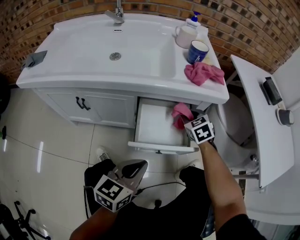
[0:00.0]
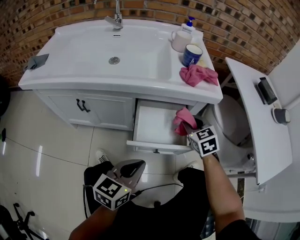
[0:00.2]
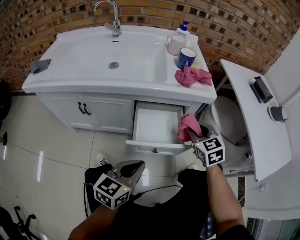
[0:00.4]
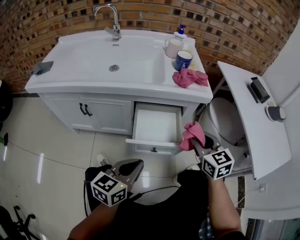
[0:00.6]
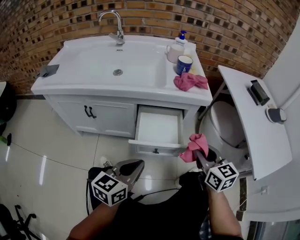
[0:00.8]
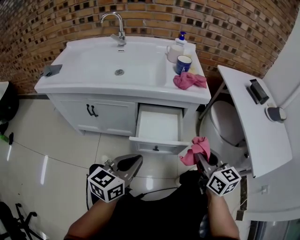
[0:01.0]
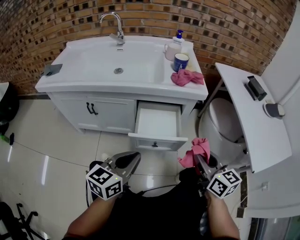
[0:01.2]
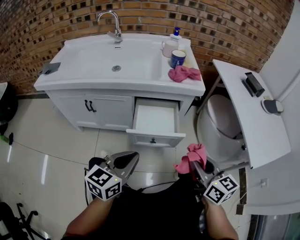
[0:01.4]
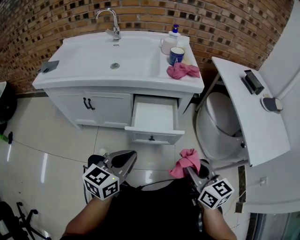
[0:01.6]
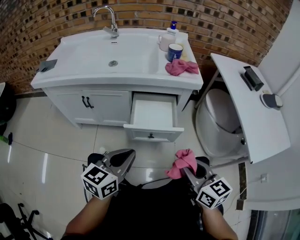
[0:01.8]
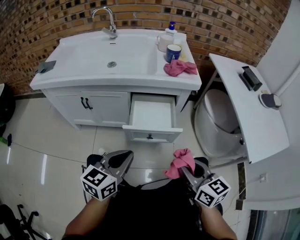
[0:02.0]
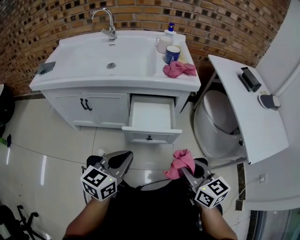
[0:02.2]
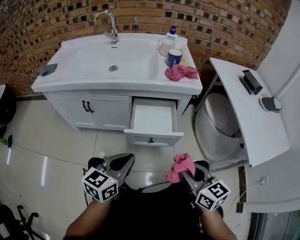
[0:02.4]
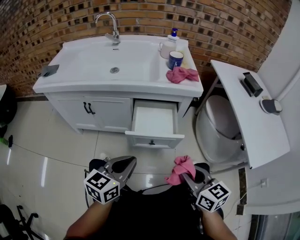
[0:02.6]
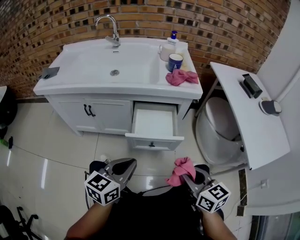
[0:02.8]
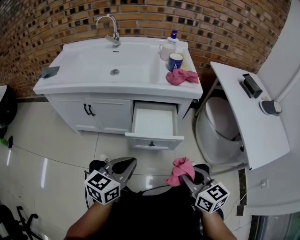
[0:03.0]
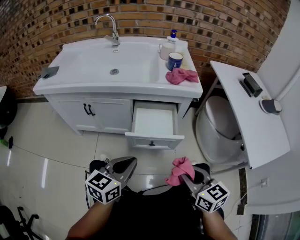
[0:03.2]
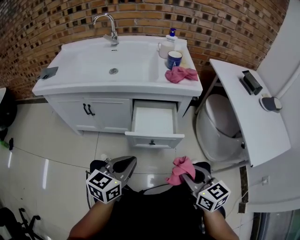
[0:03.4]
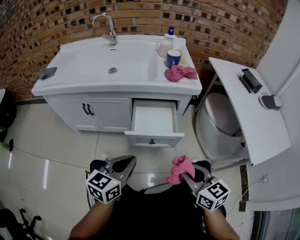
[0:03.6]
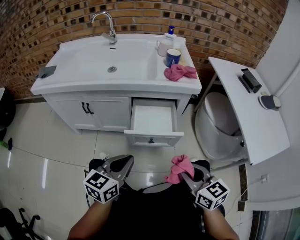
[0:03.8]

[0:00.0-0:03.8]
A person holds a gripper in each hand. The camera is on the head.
0:00.0 to 0:01.2: The right gripper is displaced backward and upward by roughly 30 cm, and points its fingers roughly 30 degrees further upward; the left gripper travels upward and backward by approximately 10 cm.
0:01.2 to 0:02.6: The right gripper heads backward, covering about 10 cm.
0:02.6 to 0:03.8: The two grippers keep their place.

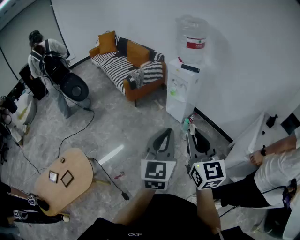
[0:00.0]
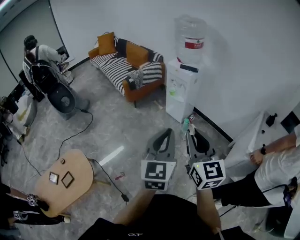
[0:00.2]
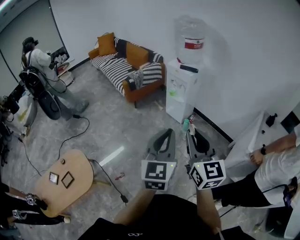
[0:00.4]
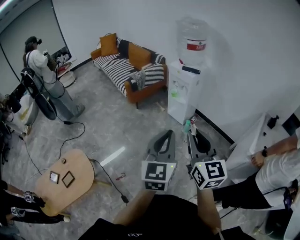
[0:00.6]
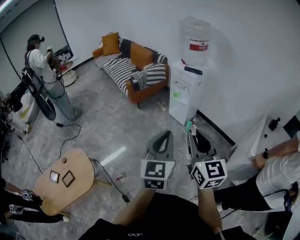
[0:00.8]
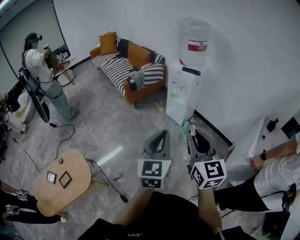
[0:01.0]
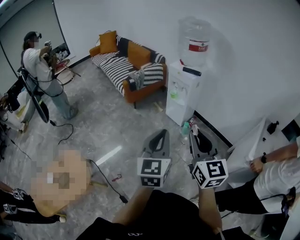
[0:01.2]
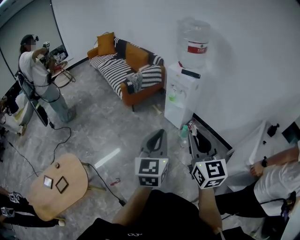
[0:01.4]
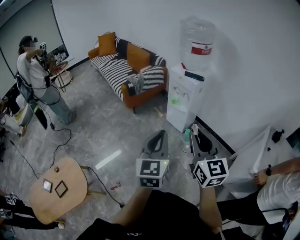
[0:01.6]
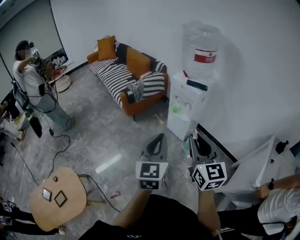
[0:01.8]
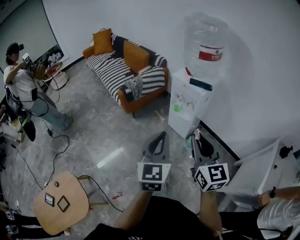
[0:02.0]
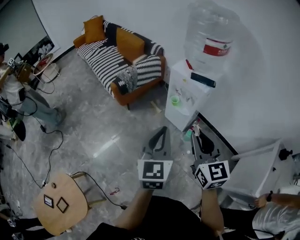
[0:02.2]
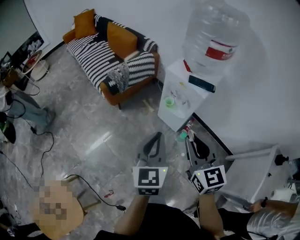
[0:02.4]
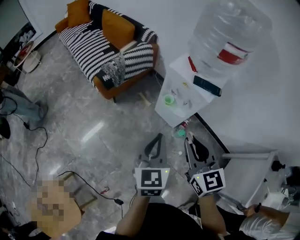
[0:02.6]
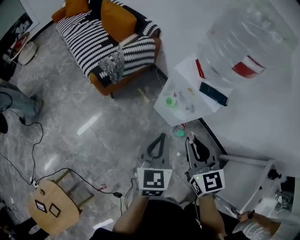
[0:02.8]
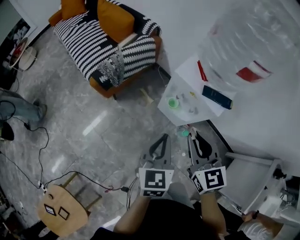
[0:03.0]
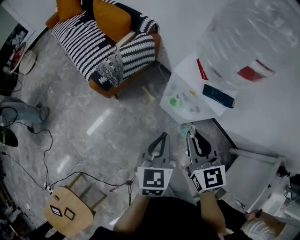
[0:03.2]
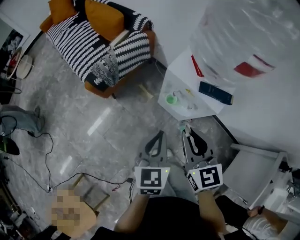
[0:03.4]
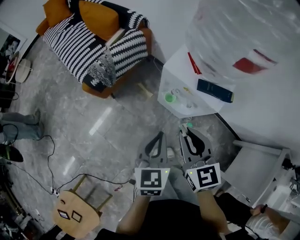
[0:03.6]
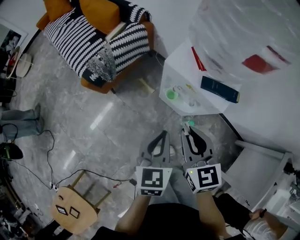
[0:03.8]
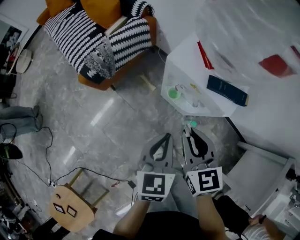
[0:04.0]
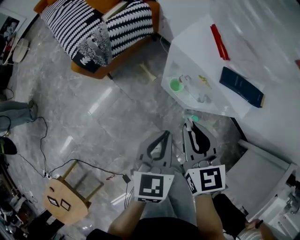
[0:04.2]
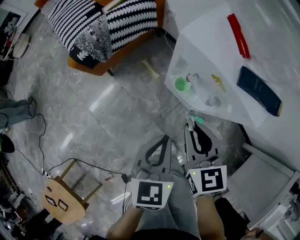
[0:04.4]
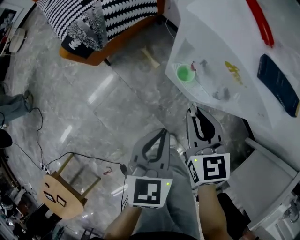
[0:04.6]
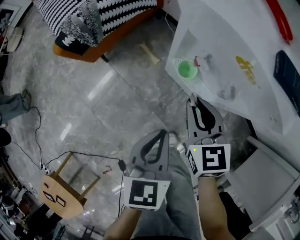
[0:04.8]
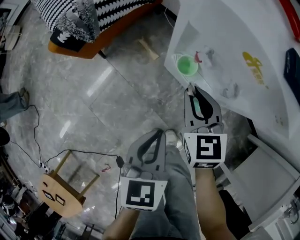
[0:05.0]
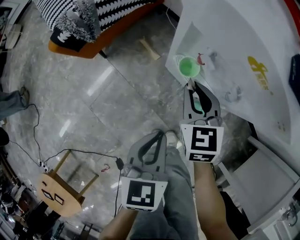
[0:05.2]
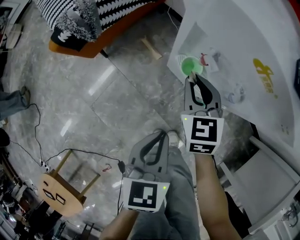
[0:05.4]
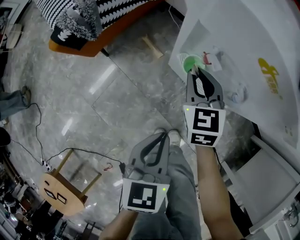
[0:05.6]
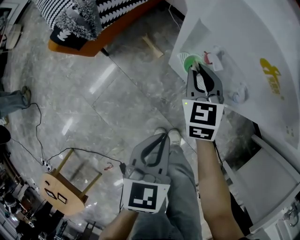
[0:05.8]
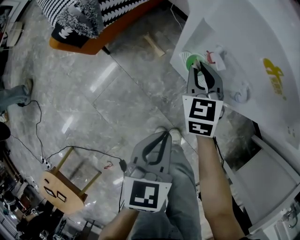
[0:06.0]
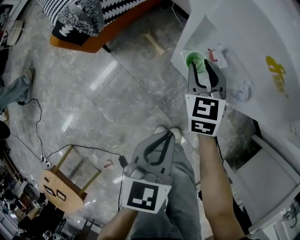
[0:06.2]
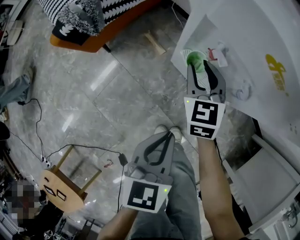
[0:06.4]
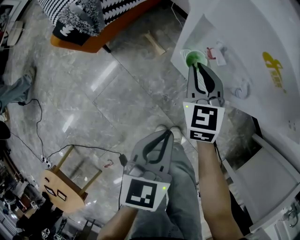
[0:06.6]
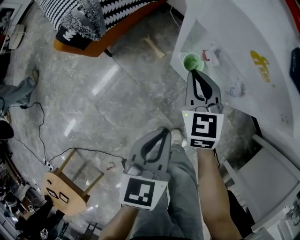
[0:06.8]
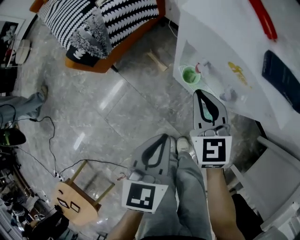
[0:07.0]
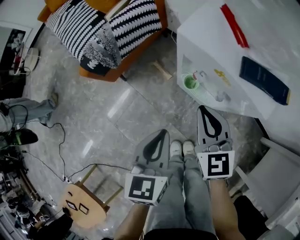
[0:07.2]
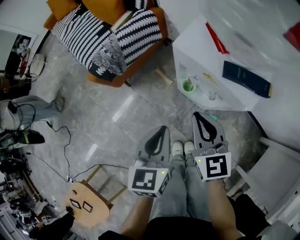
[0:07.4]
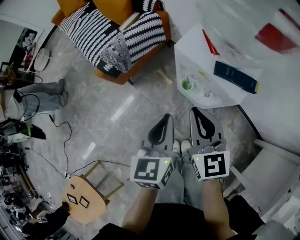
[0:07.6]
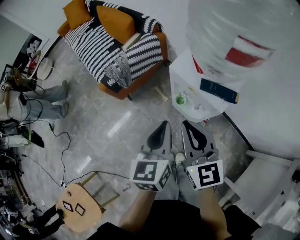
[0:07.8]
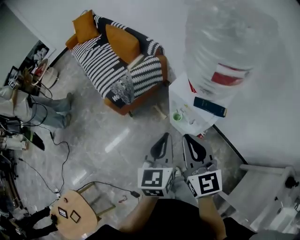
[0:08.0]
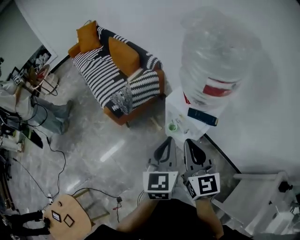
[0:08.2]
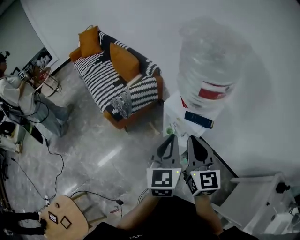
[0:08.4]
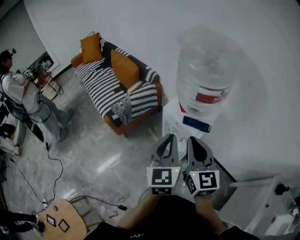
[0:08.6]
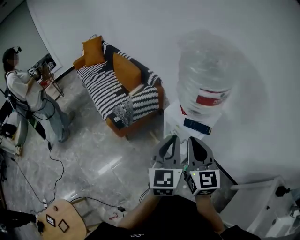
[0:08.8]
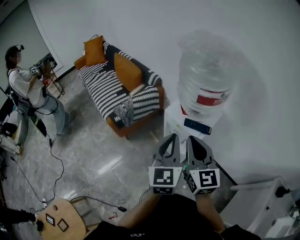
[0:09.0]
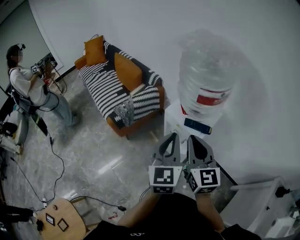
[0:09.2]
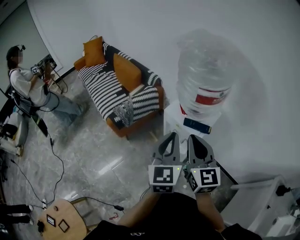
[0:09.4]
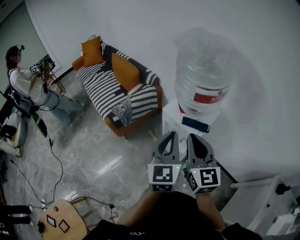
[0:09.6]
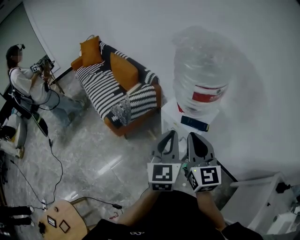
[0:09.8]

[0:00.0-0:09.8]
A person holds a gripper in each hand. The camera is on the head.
0:00.0 to 0:01.4: The grippers both shift forward by some 10 cm.
0:01.4 to 0:02.8: Both grippers are carried forward, some 50 cm.
0:02.8 to 0:04.2: The two grippers go roughly 20 cm downward and forward.
0:04.2 to 0:05.6: The left gripper heads downward, covering about 15 cm; the right gripper goes about 25 cm downward and forward.
0:05.6 to 0:07.0: Both grippers move upward, approximately 10 cm. The right gripper opens, then closes once more.
0:07.0 to 0:08.4: Both grippers move upward, about 40 cm. The right gripper changes its angle by some 20 degrees. The left gripper turns by about 30 degrees.
0:08.4 to 0:09.8: There are only small adjustments of the grippers.

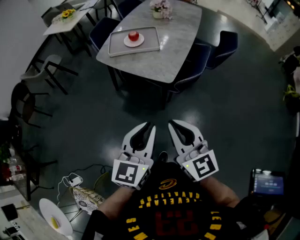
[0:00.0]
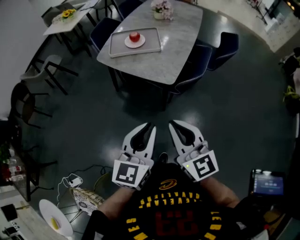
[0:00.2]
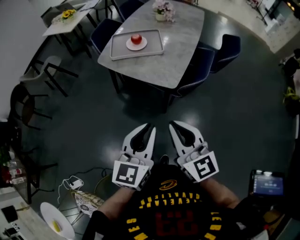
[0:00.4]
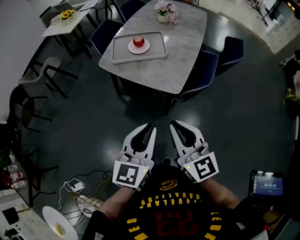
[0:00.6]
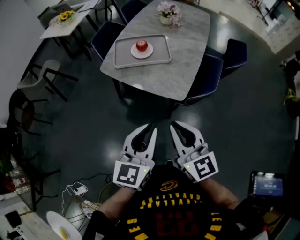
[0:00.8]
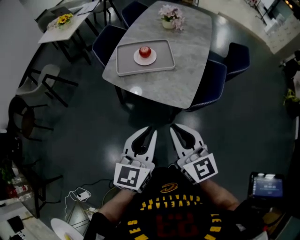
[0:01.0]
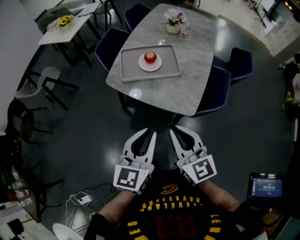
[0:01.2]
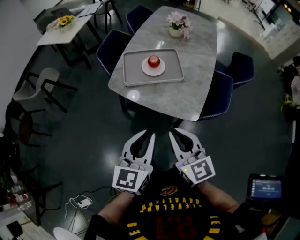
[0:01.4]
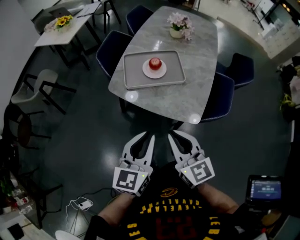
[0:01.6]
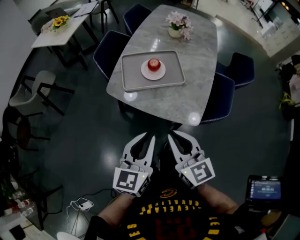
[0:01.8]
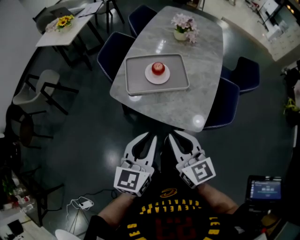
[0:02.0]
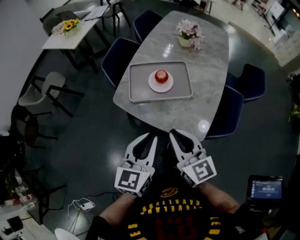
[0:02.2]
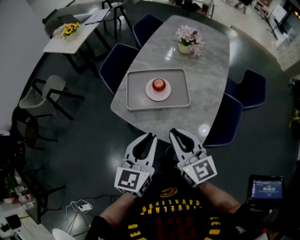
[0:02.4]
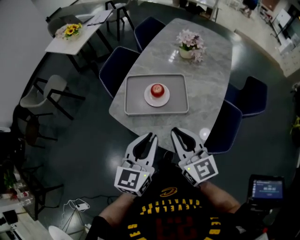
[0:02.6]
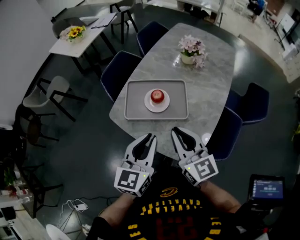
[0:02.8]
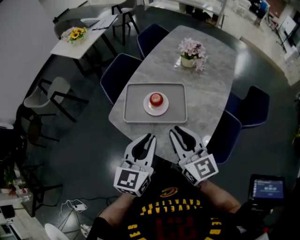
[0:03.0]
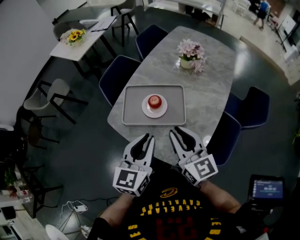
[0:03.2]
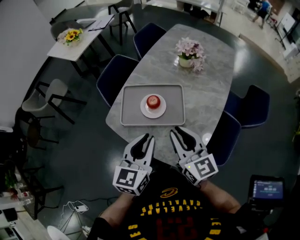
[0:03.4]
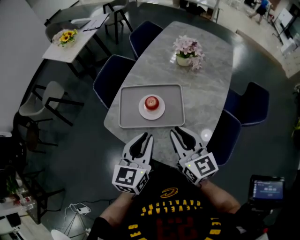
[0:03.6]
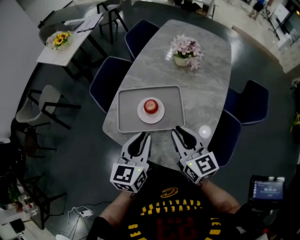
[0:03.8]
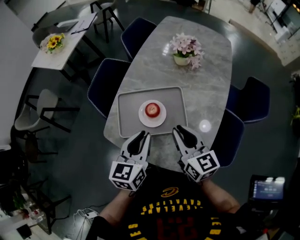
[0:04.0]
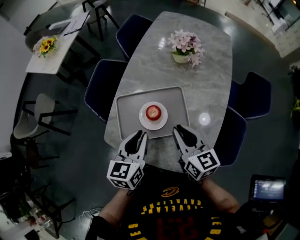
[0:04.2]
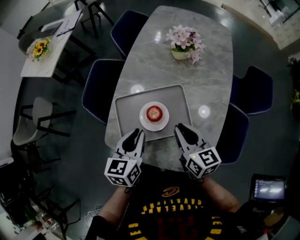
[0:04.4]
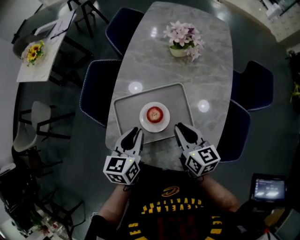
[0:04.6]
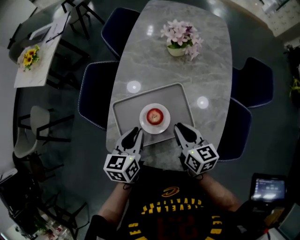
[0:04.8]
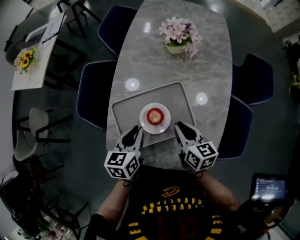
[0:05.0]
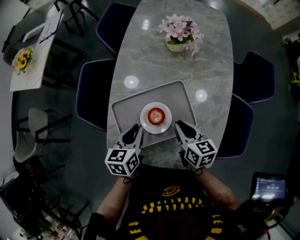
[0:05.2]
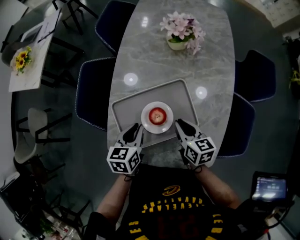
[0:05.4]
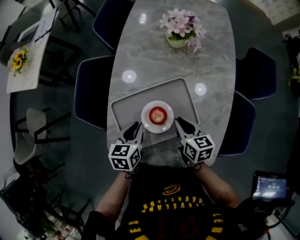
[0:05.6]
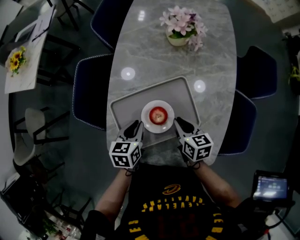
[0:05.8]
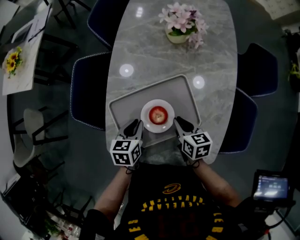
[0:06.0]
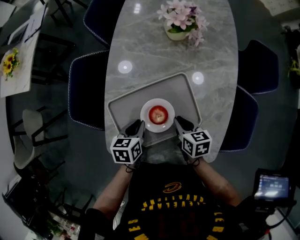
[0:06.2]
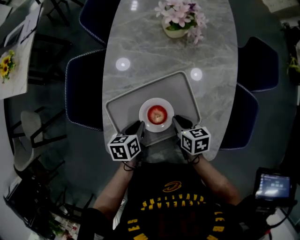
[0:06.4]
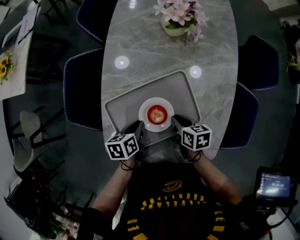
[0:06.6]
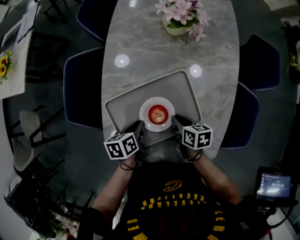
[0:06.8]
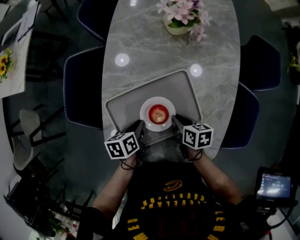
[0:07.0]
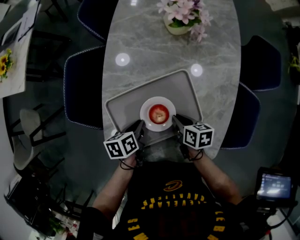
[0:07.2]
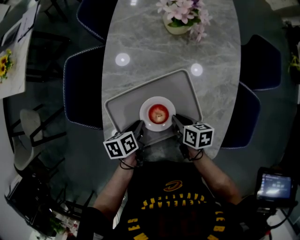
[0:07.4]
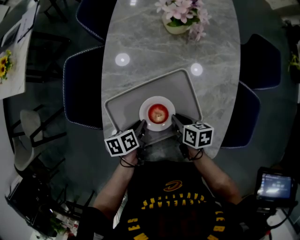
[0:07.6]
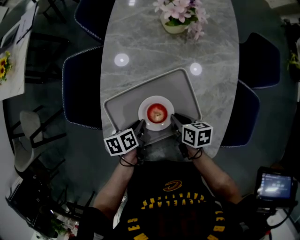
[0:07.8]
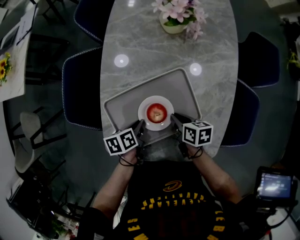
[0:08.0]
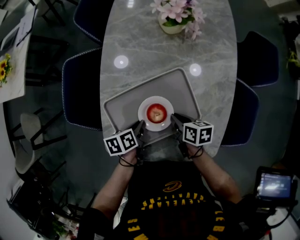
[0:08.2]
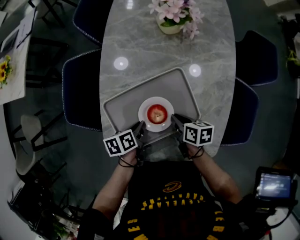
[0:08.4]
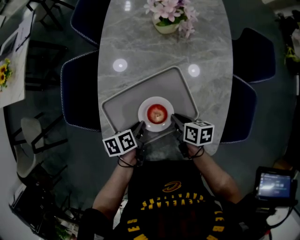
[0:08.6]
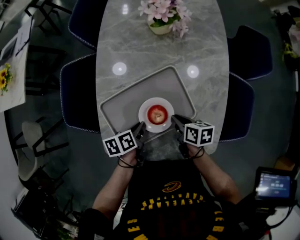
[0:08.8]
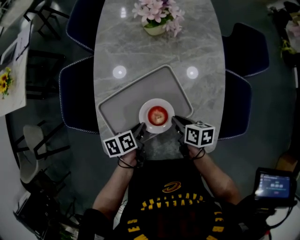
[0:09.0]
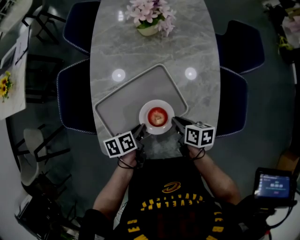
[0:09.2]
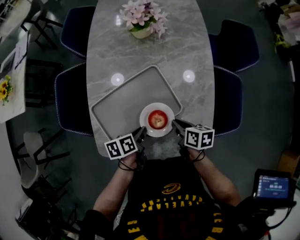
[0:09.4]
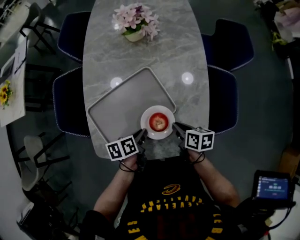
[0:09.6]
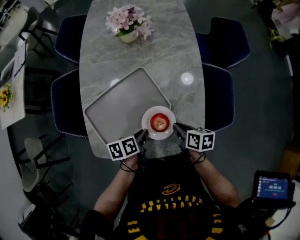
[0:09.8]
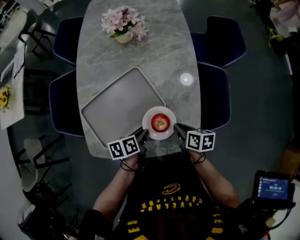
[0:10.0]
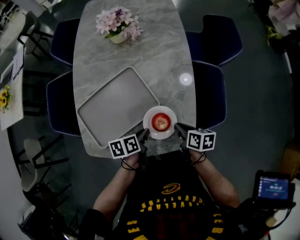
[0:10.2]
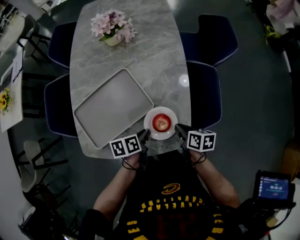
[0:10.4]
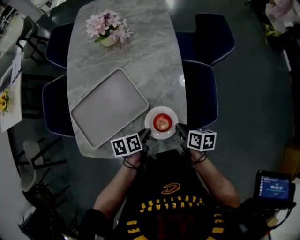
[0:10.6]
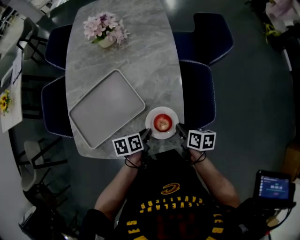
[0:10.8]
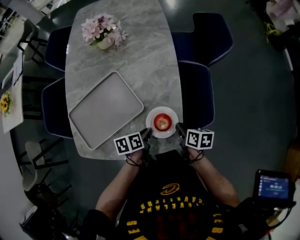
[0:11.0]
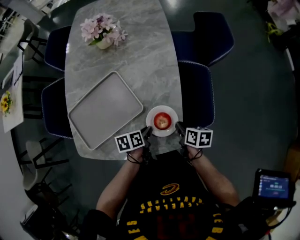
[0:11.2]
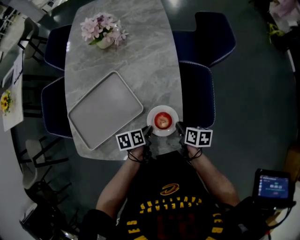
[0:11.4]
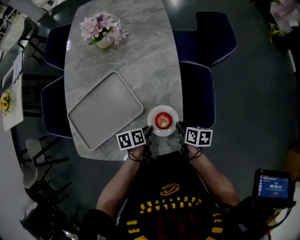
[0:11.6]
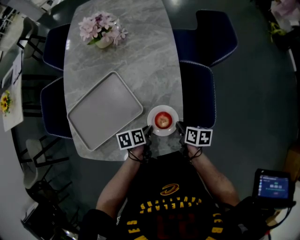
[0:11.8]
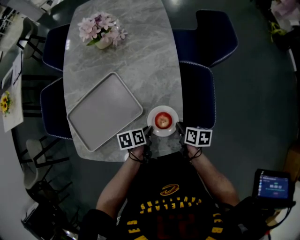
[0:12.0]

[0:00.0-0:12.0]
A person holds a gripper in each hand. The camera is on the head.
0:00.0 to 0:01.6: Both grippers travel together forward and to the left, some 30 cm.
0:01.6 to 0:03.0: Both grippers travel together forward and to the right, approximately 20 cm.
0:03.0 to 0:04.4: Both grippers move forward and downward, roughly 20 cm. The right gripper rotates some 30 degrees, while the left gripper turns by approximately 20 degrees.
0:04.4 to 0:06.0: The left gripper shifts roughly 20 cm downward and forward, and rotates about 20 degrees. Meanwhile the right gripper moves downward, approximately 15 cm, and rotates roughly 30 degrees.
0:06.0 to 0:07.6: The left gripper ends up some 5 cm from where it was, and rotates roughly 30 degrees.
0:07.6 to 0:09.0: The right gripper changes place by roughly 5 cm.
0:09.0 to 0:10.4: The grippers both shift to the right by about 20 cm.
0:10.4 to 0:12.0: Both grippers move to the right and downward, approximately 10 cm.
